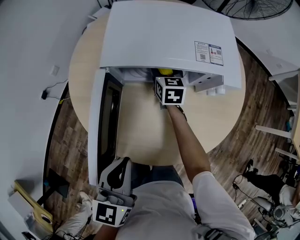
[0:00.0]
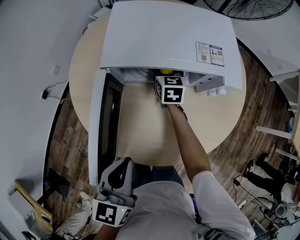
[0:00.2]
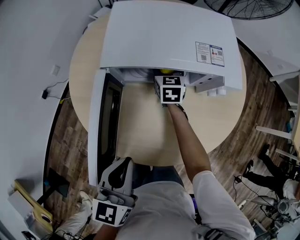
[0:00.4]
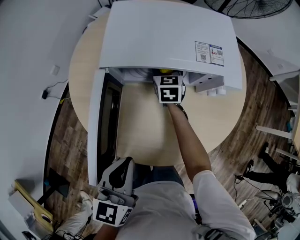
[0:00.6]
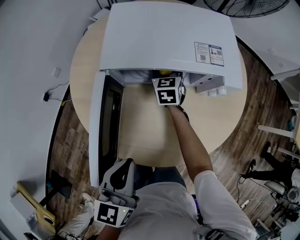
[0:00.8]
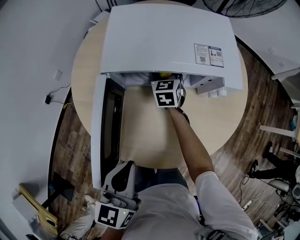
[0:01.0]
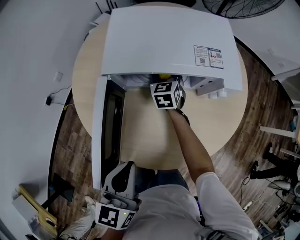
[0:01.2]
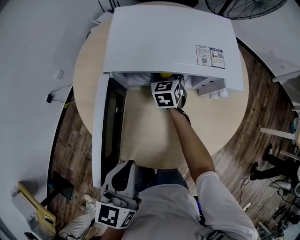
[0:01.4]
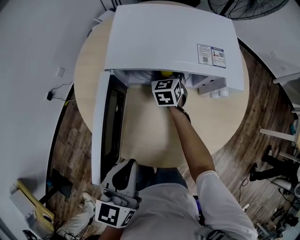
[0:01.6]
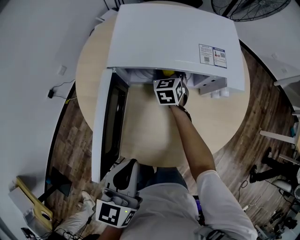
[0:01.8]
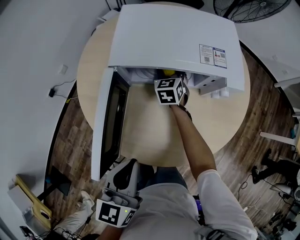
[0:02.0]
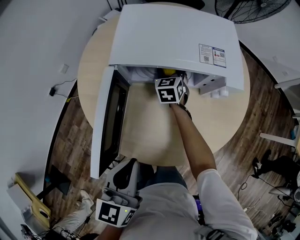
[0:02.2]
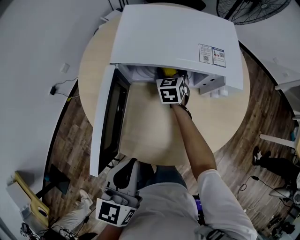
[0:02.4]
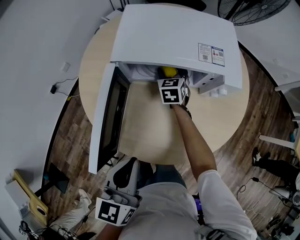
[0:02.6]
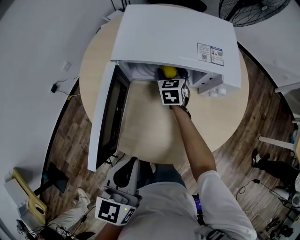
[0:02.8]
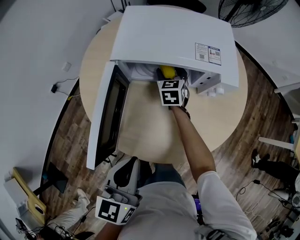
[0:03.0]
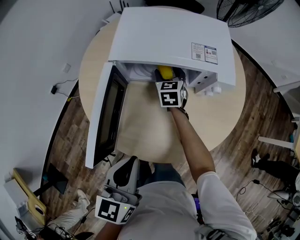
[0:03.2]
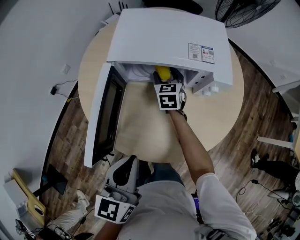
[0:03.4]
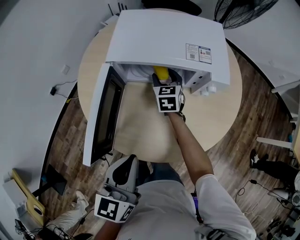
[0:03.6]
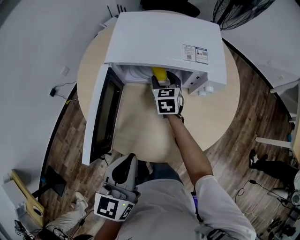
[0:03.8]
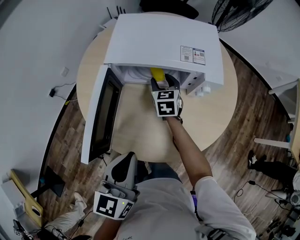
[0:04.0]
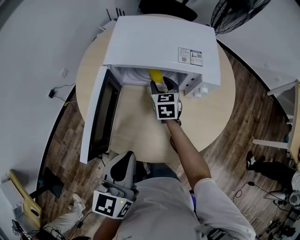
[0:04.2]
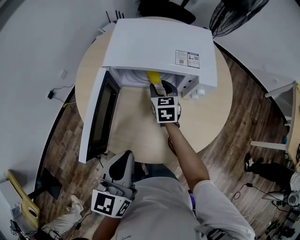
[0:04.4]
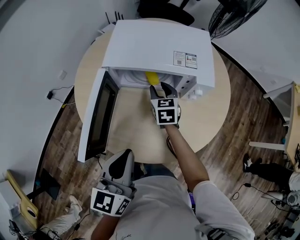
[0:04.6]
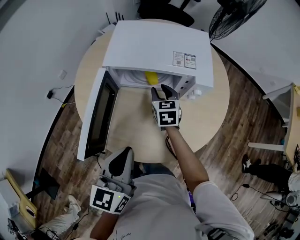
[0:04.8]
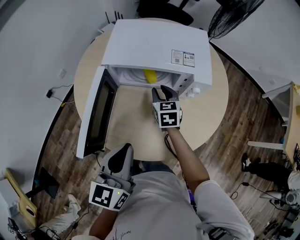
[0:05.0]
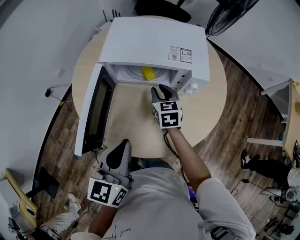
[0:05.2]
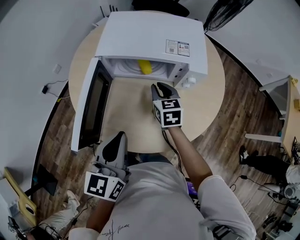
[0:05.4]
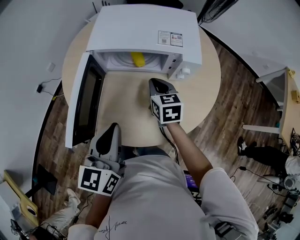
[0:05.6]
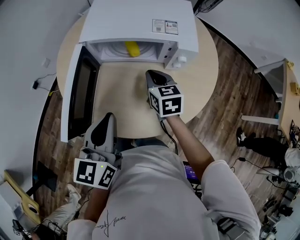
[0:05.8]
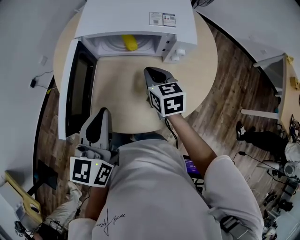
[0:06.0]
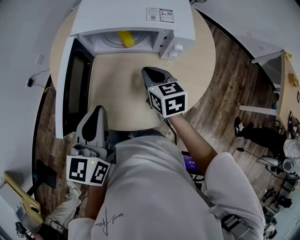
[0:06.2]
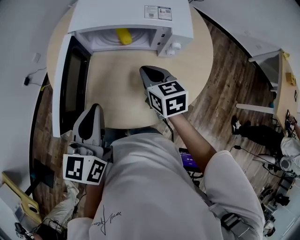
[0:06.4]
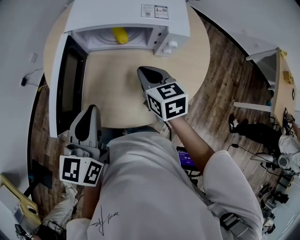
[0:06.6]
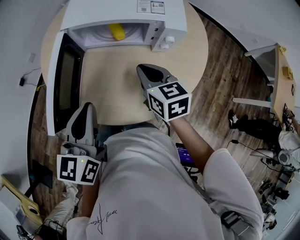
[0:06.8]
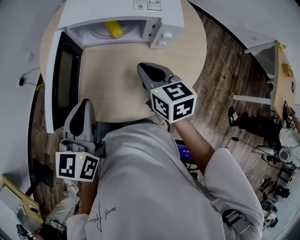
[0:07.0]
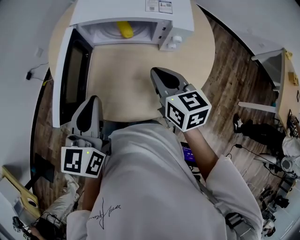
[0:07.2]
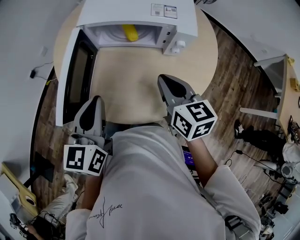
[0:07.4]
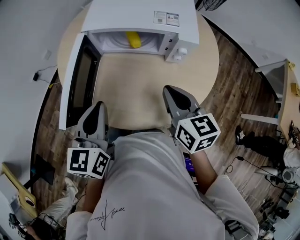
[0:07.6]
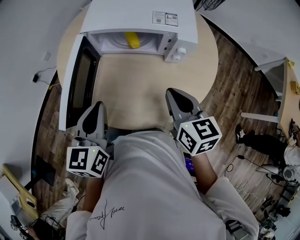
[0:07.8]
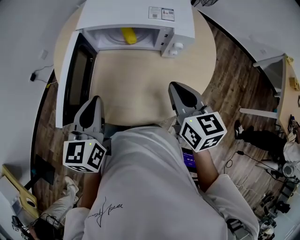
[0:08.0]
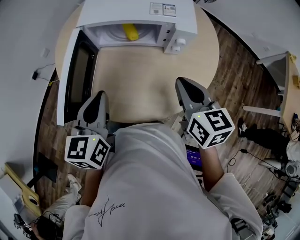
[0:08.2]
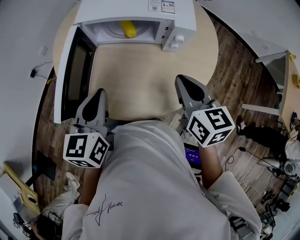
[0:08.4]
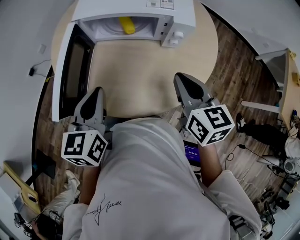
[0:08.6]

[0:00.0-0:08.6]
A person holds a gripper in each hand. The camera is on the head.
0:00.0 to 0:01.4: The right gripper swivels some 20 degrees.
0:01.4 to 0:02.8: There are only small adjustments of the grippers.
0:02.8 to 0:04.4: The right gripper moves backward and upward, roughly 10 cm, and closes its fingers.
0:04.4 to 0:05.8: The right gripper goes about 10 cm backward, and closes its fingers.
0:05.8 to 0:07.2: The right gripper goes approximately 10 cm backward and upward.
0:07.2 to 0:08.6: The right gripper goes some 5 cm to the right.

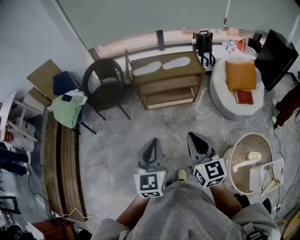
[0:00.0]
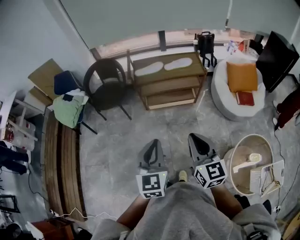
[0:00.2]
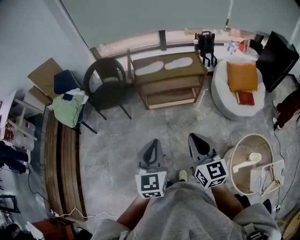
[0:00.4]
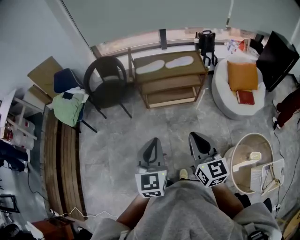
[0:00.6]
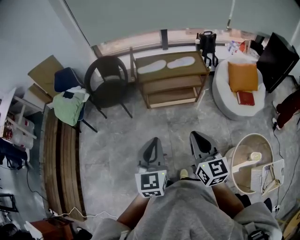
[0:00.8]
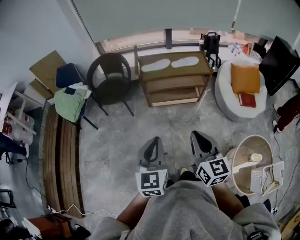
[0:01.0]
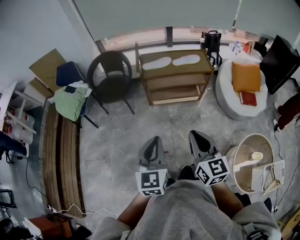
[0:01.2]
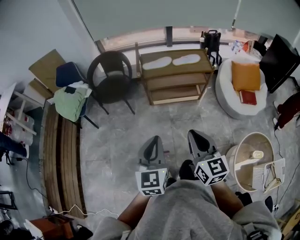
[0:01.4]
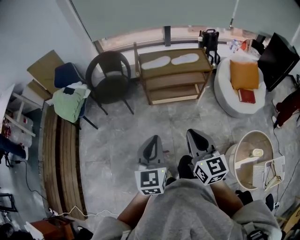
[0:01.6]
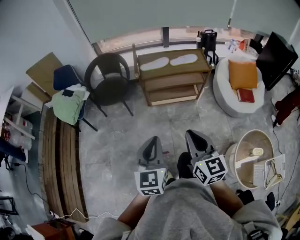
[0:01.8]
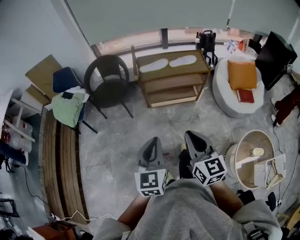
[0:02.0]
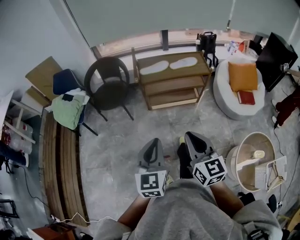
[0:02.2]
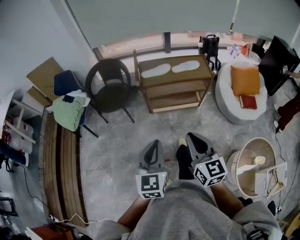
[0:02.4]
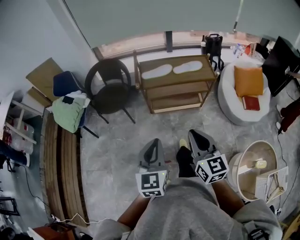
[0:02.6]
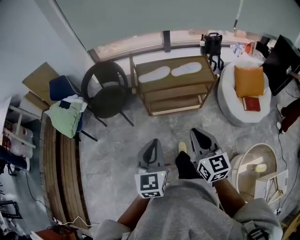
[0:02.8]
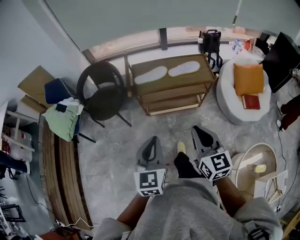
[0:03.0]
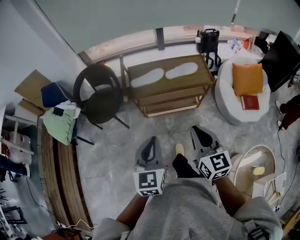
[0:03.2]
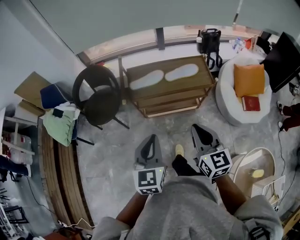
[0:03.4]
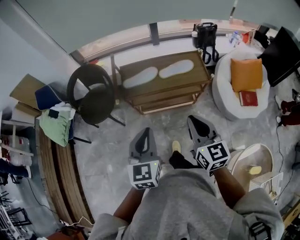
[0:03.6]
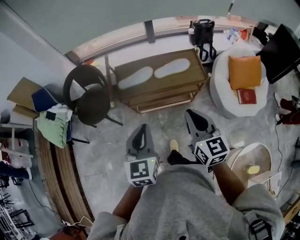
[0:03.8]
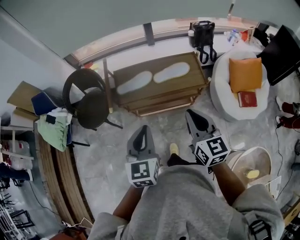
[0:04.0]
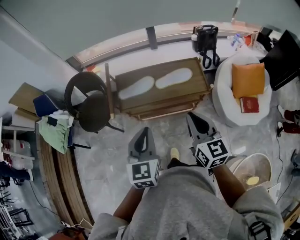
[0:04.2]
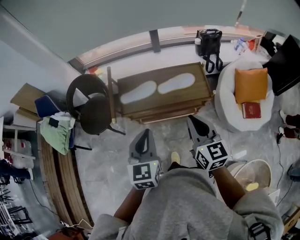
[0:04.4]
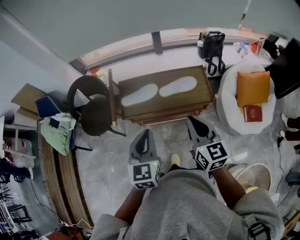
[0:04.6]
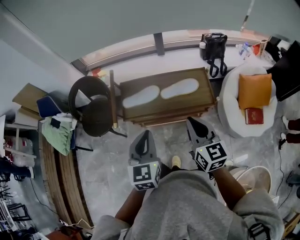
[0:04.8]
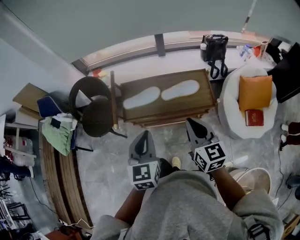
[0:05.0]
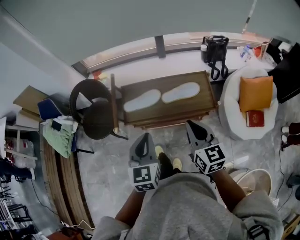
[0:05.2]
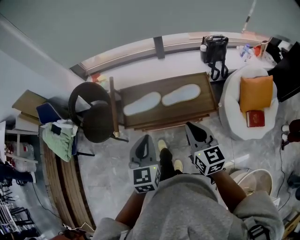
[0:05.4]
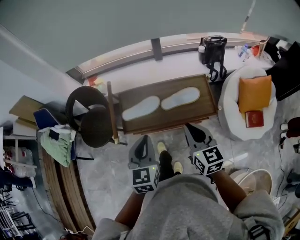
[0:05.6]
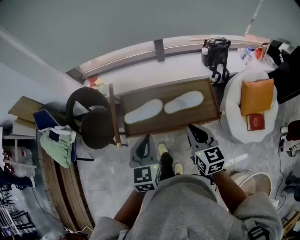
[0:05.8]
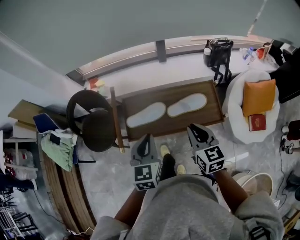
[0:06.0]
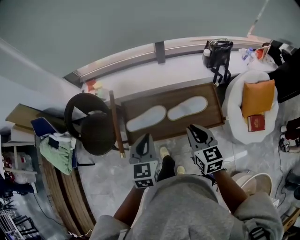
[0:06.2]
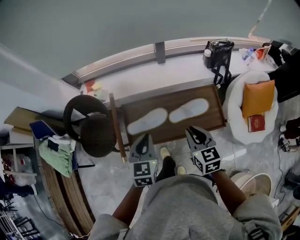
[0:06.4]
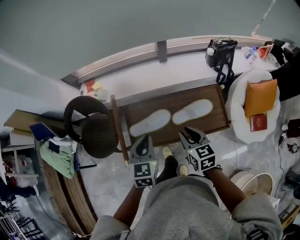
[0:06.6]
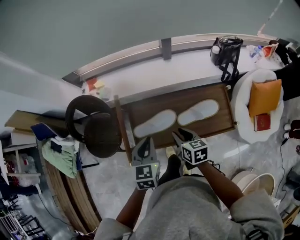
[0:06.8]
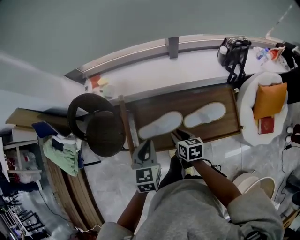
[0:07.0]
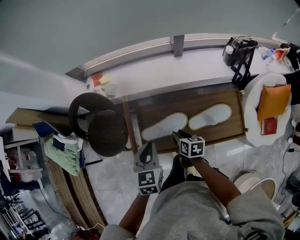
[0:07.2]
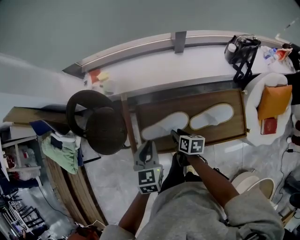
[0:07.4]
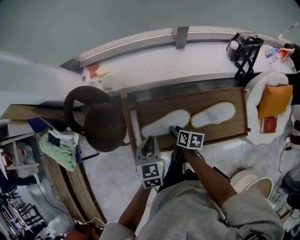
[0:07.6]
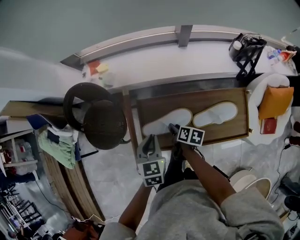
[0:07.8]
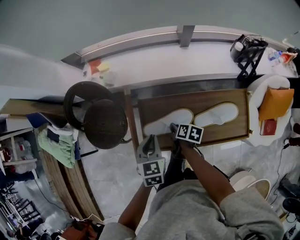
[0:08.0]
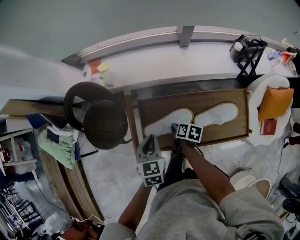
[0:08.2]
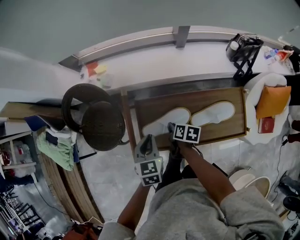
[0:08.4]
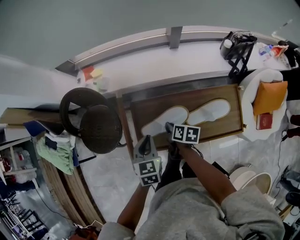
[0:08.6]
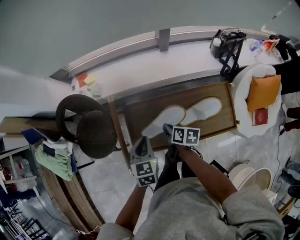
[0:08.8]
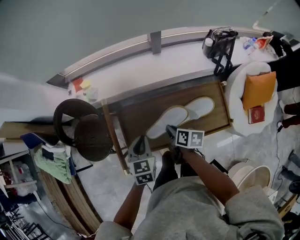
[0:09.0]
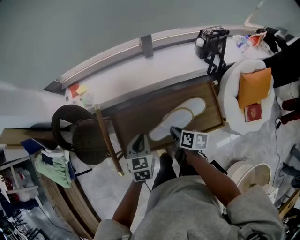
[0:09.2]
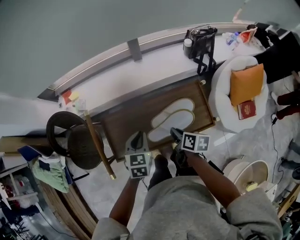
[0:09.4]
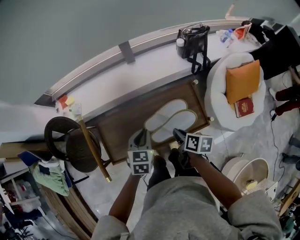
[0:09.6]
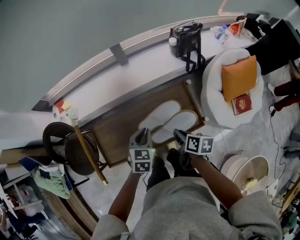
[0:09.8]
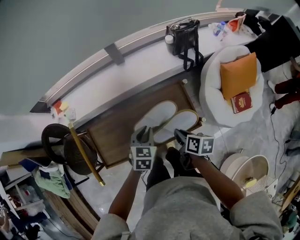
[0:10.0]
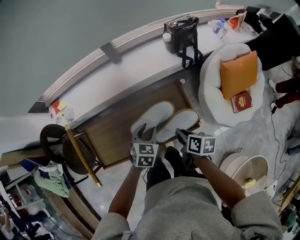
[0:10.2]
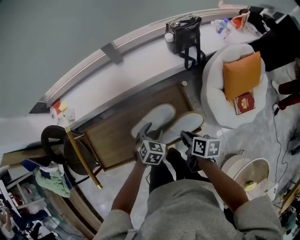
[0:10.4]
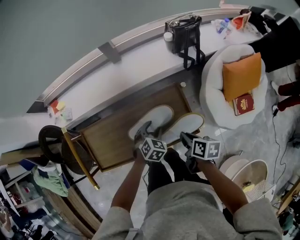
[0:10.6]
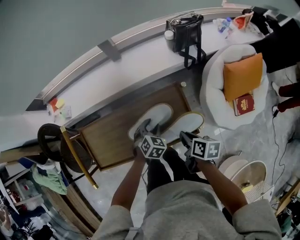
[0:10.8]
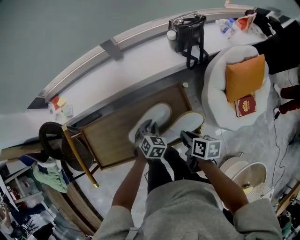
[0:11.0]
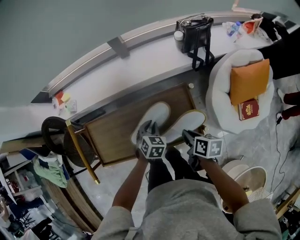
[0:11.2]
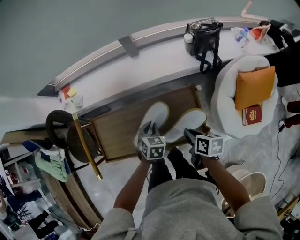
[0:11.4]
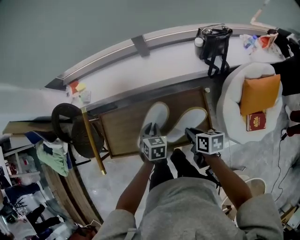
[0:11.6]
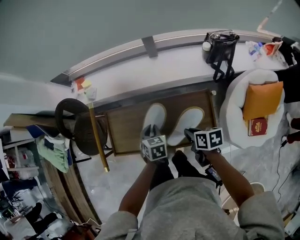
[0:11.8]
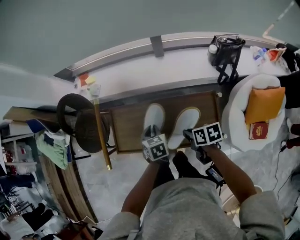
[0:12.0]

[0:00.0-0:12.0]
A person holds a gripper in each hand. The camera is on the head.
0:00.0 to 0:01.6: Both grippers travel together to the left, some 10 cm.
0:01.6 to 0:03.0: The right gripper travels forward and to the right by some 20 cm. The left gripper goes some 20 cm forward.
0:03.0 to 0:04.4: Both grippers travel together forward and to the right, some 25 cm.
0:04.4 to 0:06.0: The left gripper goes approximately 15 cm forward. Meanwhile the right gripper is displaced forward and downward by roughly 15 cm.
0:06.0 to 0:07.6: The left gripper moves downward, forward and to the left, some 20 cm, while the right gripper is displaced downward, forward and to the left by some 35 cm, rolls clockwise, seen from behind, by approximately 40 degrees, and opens its fingers.
0:07.6 to 0:09.0: The right gripper travels upward and to the right by roughly 10 cm, and closes up.
0:09.0 to 0:10.4: The two grippers go approximately 30 cm to the right. The left gripper rotates some 40 degrees, and opens.
0:10.4 to 0:12.0: The left gripper shifts by about 20 cm, rotates around the line of its fingers by some 50 degrees, counterclockwise from behind, and closes. Meanwhile the right gripper shifts by about 15 cm, and swivels about 40 degrees.

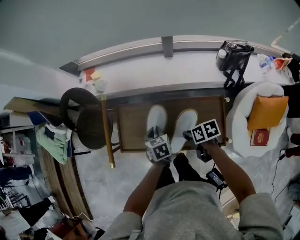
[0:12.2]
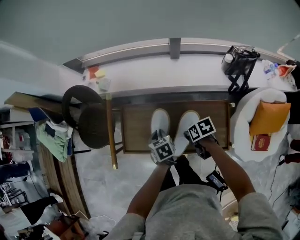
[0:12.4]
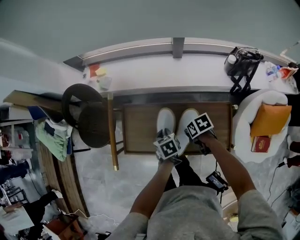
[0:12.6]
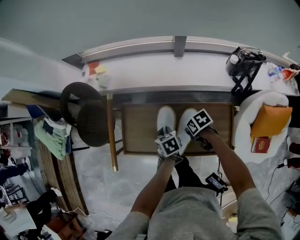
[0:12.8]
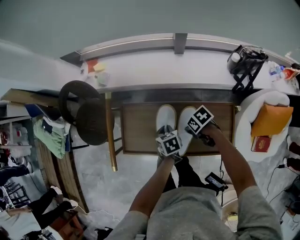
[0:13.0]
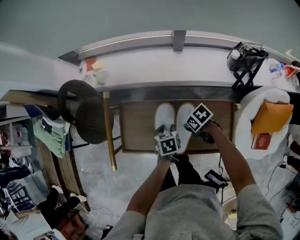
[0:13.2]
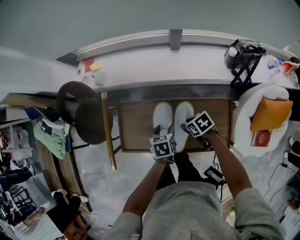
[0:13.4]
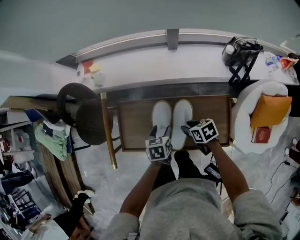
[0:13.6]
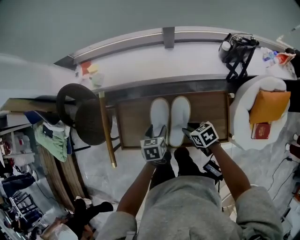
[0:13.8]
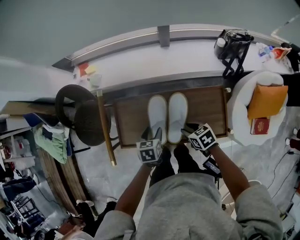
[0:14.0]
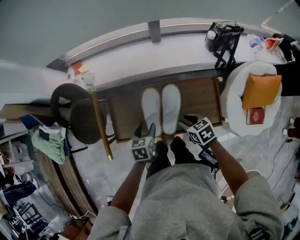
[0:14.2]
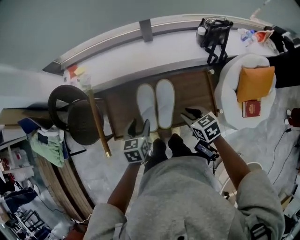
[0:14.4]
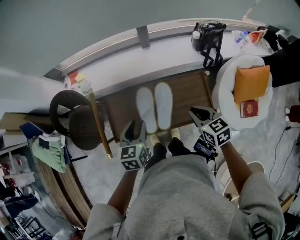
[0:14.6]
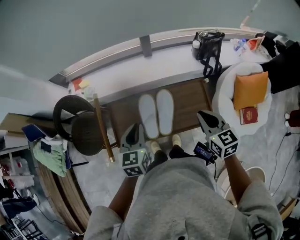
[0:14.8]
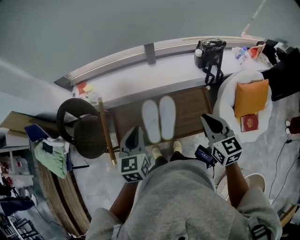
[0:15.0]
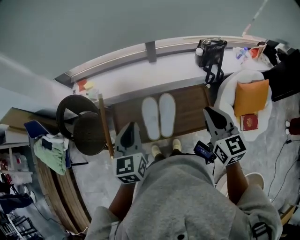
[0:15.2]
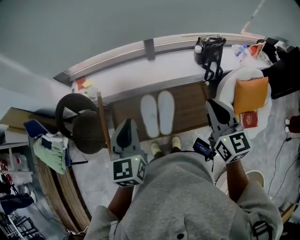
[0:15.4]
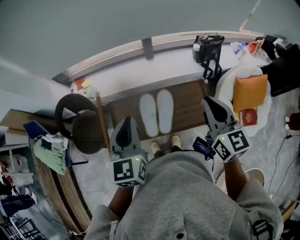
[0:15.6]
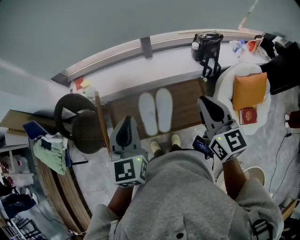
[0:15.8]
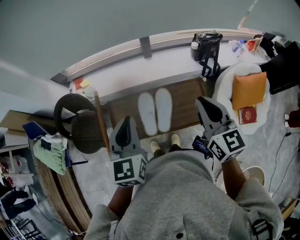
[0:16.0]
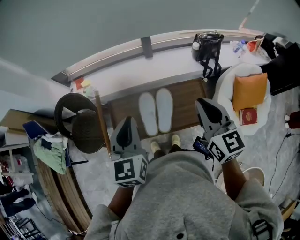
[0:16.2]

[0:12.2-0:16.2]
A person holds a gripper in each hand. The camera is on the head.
0:12.2 to 0:13.6: The left gripper opens up; the right gripper travels downward by about 5 cm, and opens up.
0:13.6 to 0:14.8: Both grippers travel together upward, approximately 25 cm. The left gripper swivels approximately 30 degrees, and closes up. Meanwhile the right gripper turns by about 50 degrees, and closes.
0:14.8 to 0:16.2: The two grippers go approximately 15 cm upward.
